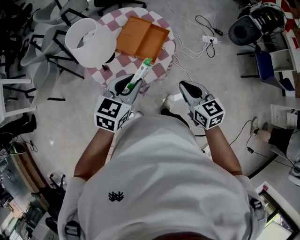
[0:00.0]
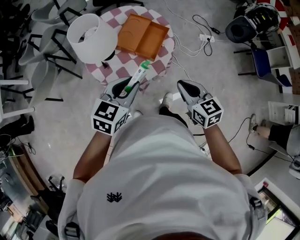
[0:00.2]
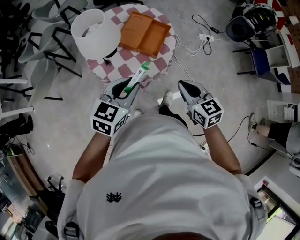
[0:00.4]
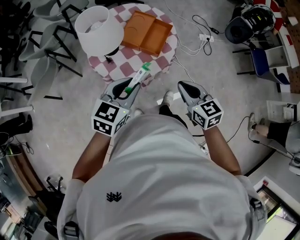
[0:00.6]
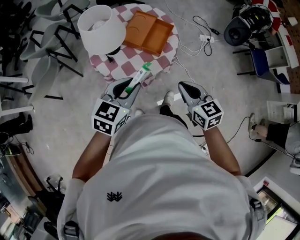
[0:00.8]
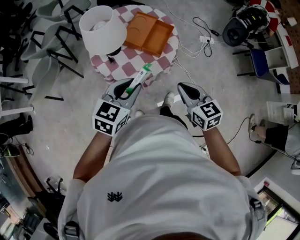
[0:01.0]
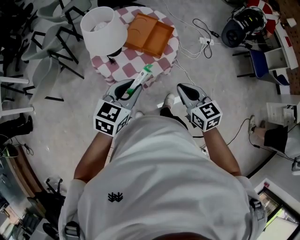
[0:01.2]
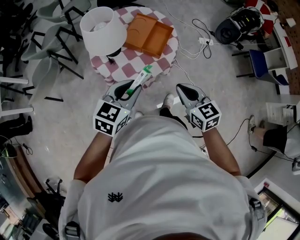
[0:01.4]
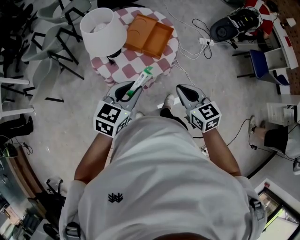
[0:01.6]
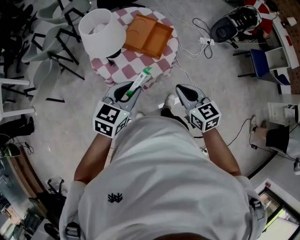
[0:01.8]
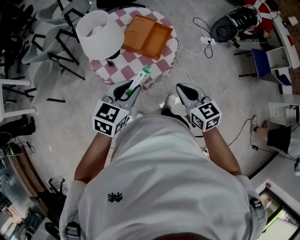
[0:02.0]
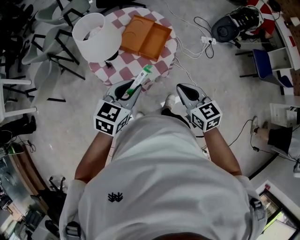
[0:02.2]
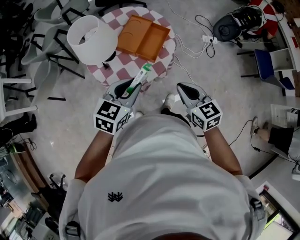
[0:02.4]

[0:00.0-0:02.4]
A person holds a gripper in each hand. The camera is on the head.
0:00.0 to 0:01.2: Both grippers travel together backward and to the left, about 10 cm.
0:01.2 to 0:02.4: The two grippers go approximately 5 cm forward.

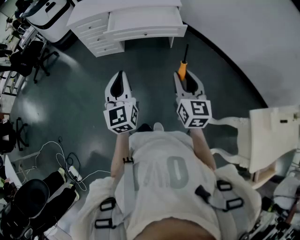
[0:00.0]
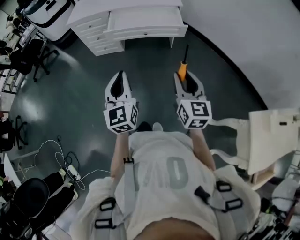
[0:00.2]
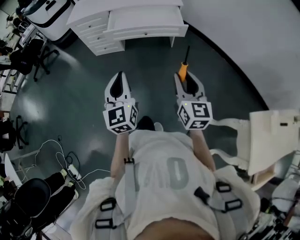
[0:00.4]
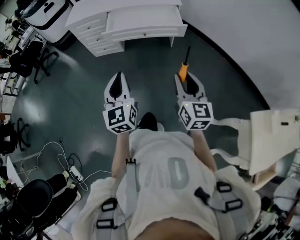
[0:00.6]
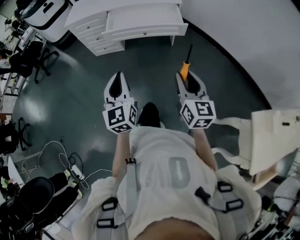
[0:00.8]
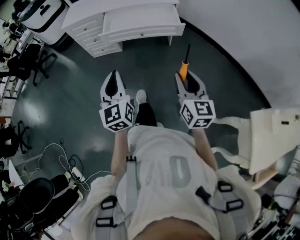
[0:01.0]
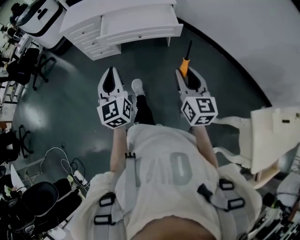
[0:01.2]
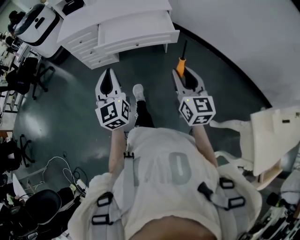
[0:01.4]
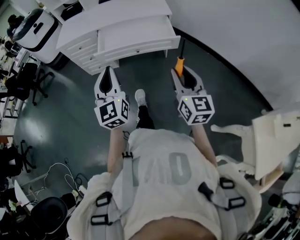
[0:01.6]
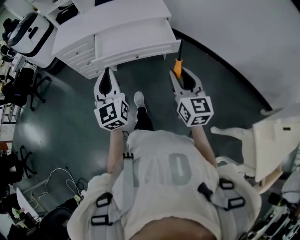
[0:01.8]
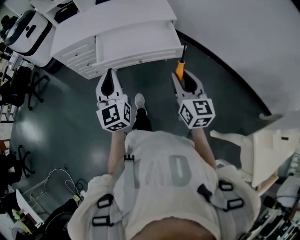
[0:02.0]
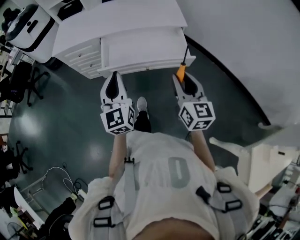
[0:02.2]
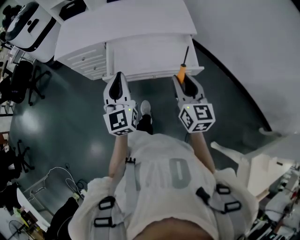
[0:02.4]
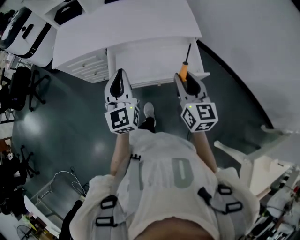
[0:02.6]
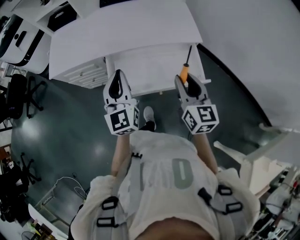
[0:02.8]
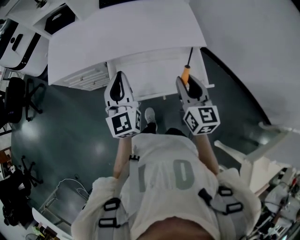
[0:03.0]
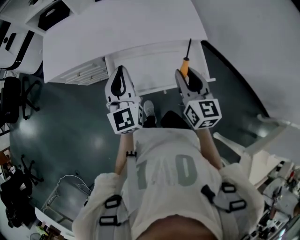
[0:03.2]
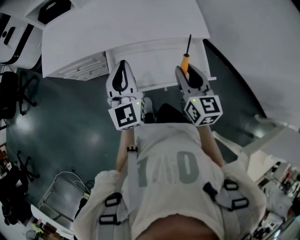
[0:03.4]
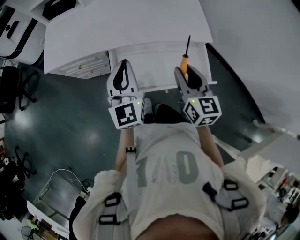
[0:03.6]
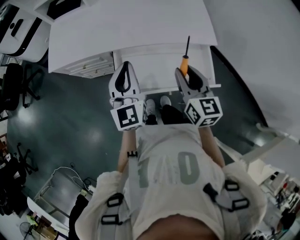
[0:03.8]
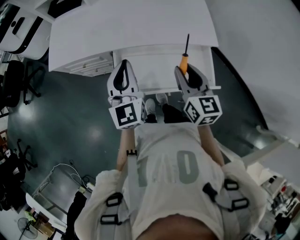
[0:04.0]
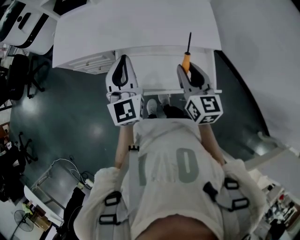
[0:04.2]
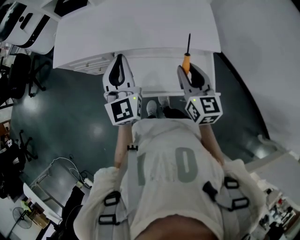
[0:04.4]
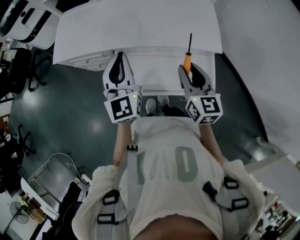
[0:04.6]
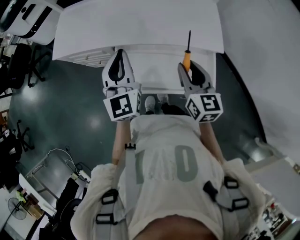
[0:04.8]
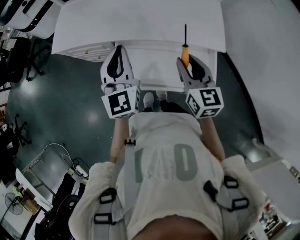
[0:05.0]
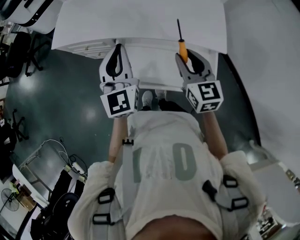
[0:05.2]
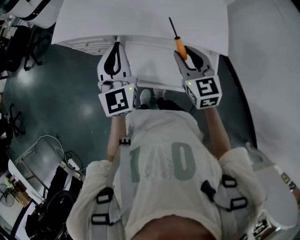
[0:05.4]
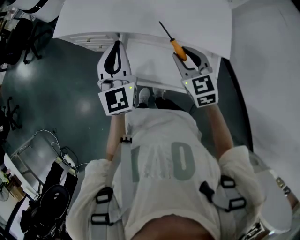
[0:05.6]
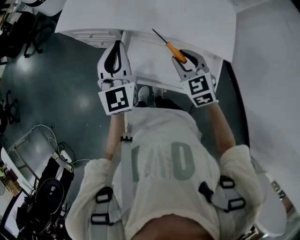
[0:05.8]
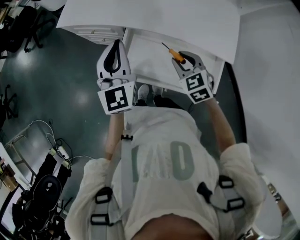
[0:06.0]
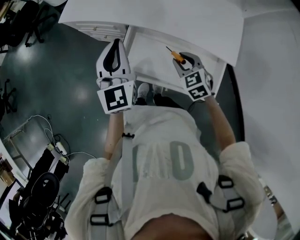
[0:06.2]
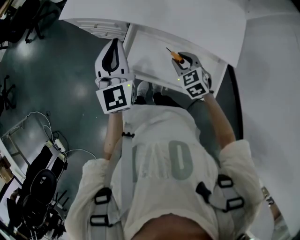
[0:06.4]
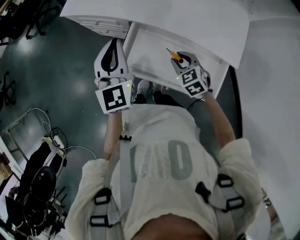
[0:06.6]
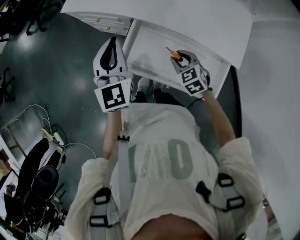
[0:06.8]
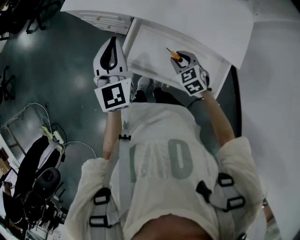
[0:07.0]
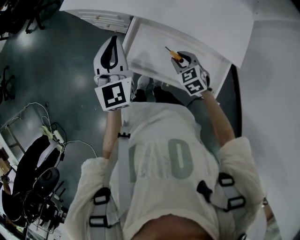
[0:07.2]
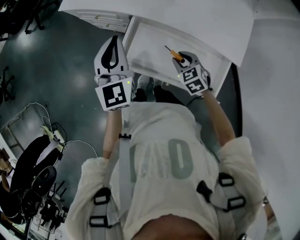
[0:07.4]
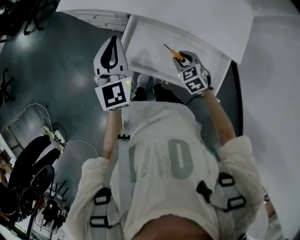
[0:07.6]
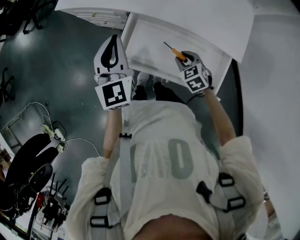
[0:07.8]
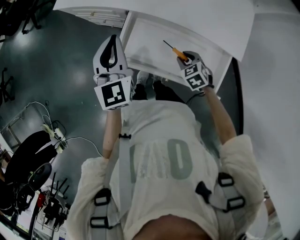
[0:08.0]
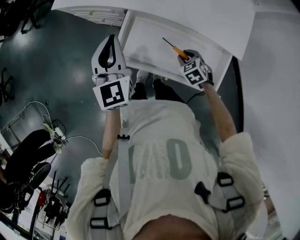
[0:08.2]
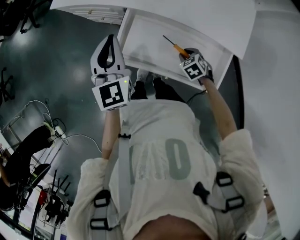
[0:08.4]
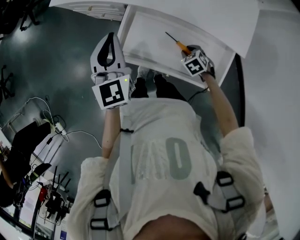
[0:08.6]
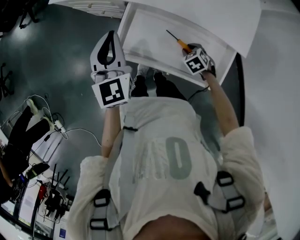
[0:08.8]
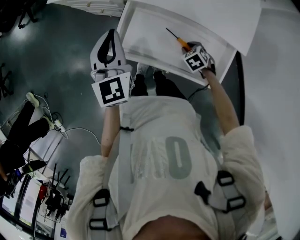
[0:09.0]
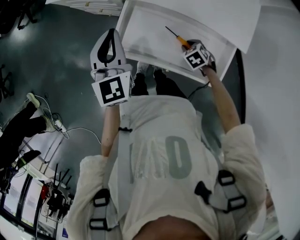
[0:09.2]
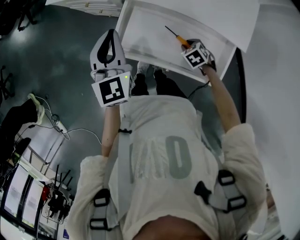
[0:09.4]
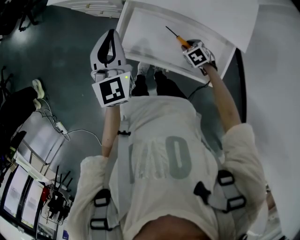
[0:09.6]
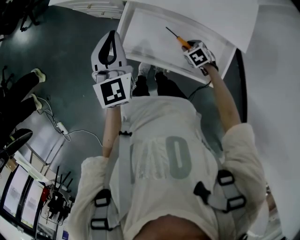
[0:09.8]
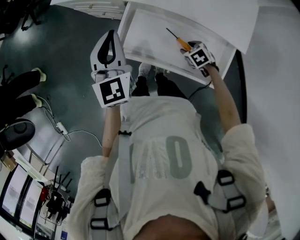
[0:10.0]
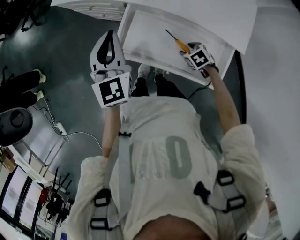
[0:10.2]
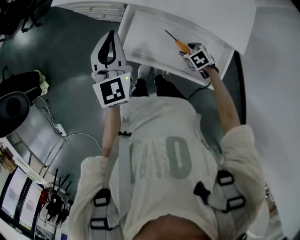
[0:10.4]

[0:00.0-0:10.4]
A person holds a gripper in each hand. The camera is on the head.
0:00.0 to 0:01.4: Both grippers travel together forward, about 10 cm.
0:01.4 to 0:03.0: The two grippers travel together, forward, roughly 50 cm.
0:03.0 to 0:04.4: The two grippers go about 5 cm forward.
0:04.4 to 0:06.0: The right gripper is displaced downward, to the left and forward by approximately 15 cm, and rotates about 50 degrees; the left gripper goes some 5 cm to the left.
0:06.0 to 0:07.4: The right gripper moves downward, approximately 10 cm.
0:07.4 to 0:09.0: The right gripper is displaced downward by approximately 10 cm, and rotates about 20 degrees.
0:09.0 to 0:10.4: The right gripper opens.

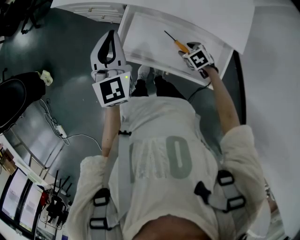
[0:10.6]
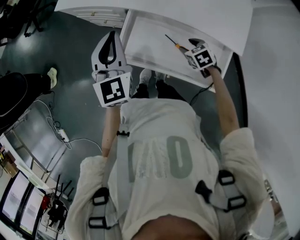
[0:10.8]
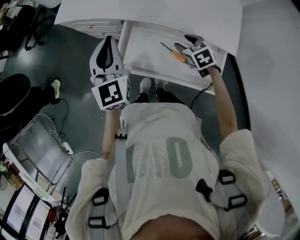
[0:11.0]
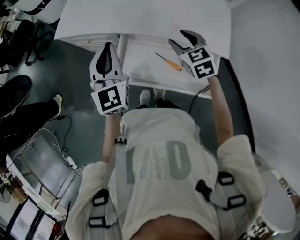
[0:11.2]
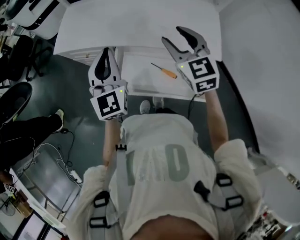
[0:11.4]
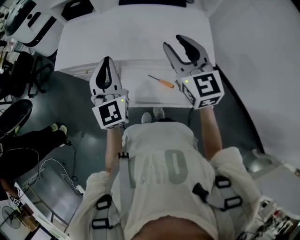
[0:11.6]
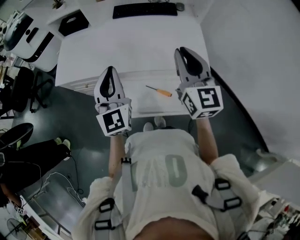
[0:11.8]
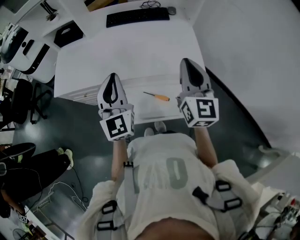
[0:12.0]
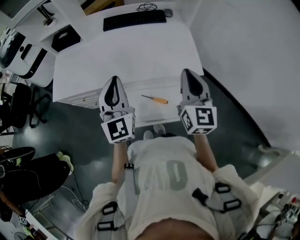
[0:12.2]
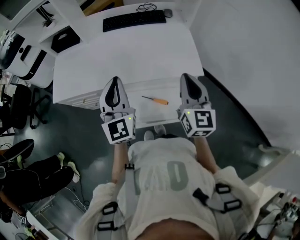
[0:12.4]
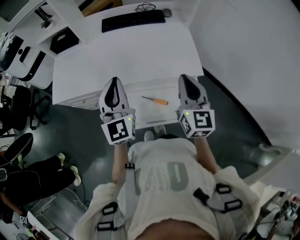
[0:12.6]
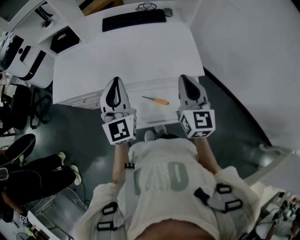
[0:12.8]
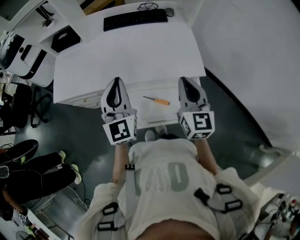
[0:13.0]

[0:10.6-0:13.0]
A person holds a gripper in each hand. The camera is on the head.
0:10.6 to 0:11.8: The right gripper is displaced upward by some 40 cm, angles its fingers upward, by roughly 70 degrees, and closes. Meanwhile the left gripper goes roughly 10 cm upward, and changes its angle by approximately 20 degrees.
0:11.8 to 0:13.0: The right gripper heads downward, covering roughly 5 cm.

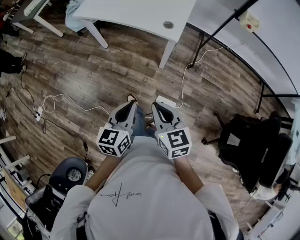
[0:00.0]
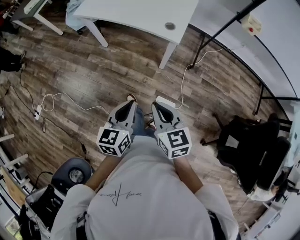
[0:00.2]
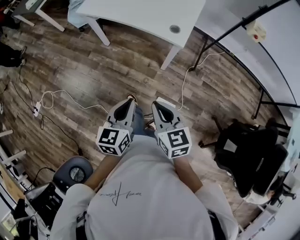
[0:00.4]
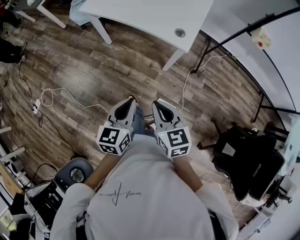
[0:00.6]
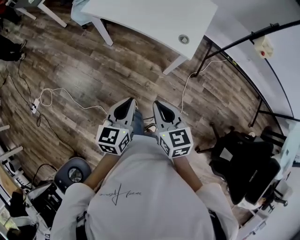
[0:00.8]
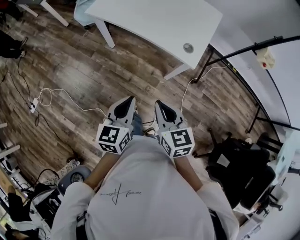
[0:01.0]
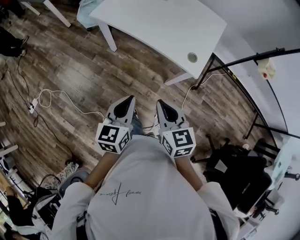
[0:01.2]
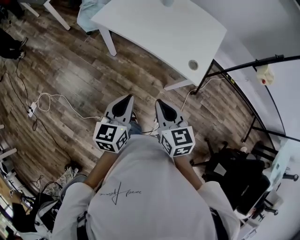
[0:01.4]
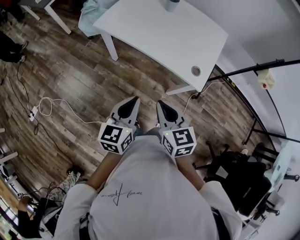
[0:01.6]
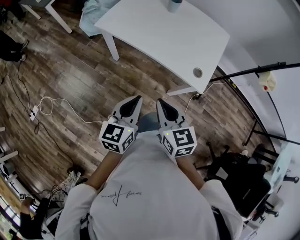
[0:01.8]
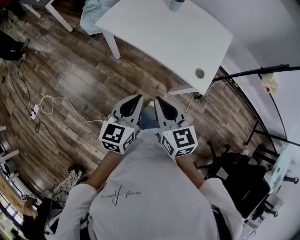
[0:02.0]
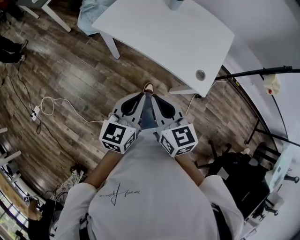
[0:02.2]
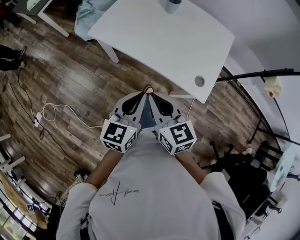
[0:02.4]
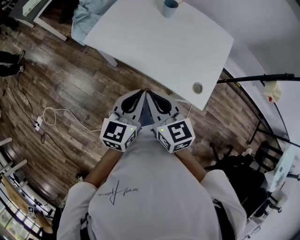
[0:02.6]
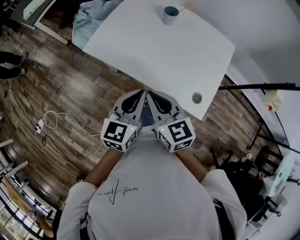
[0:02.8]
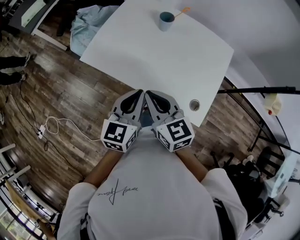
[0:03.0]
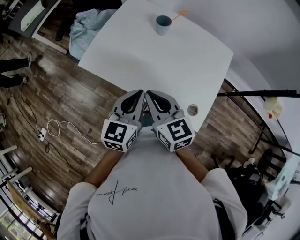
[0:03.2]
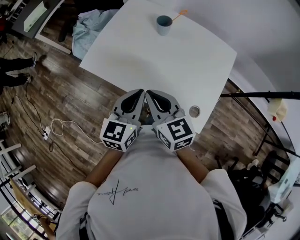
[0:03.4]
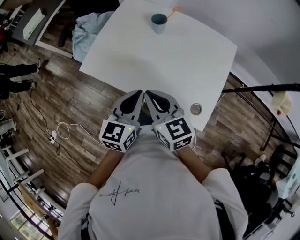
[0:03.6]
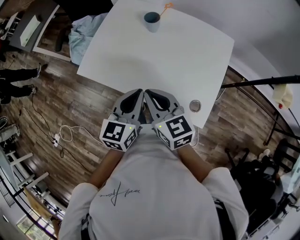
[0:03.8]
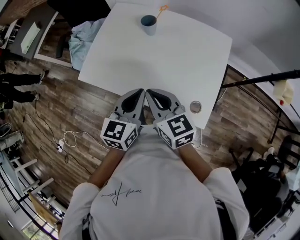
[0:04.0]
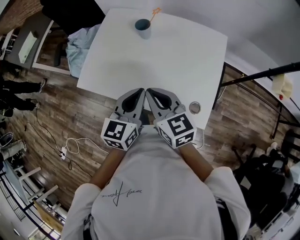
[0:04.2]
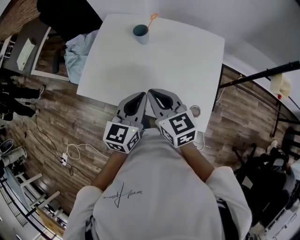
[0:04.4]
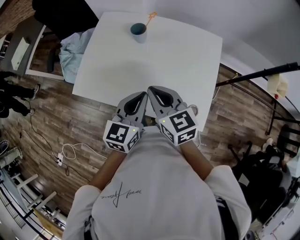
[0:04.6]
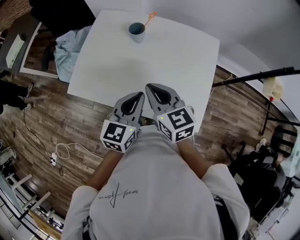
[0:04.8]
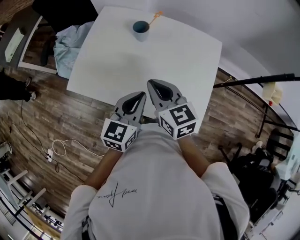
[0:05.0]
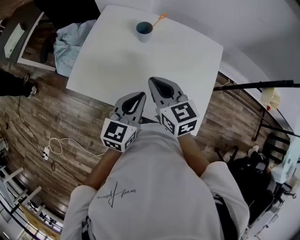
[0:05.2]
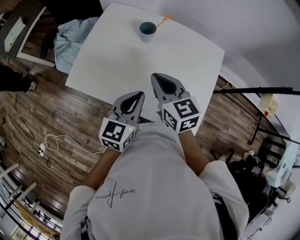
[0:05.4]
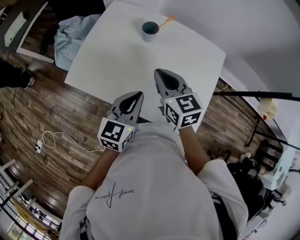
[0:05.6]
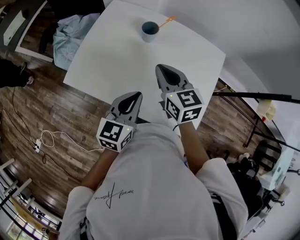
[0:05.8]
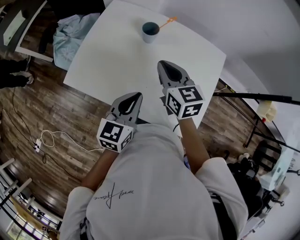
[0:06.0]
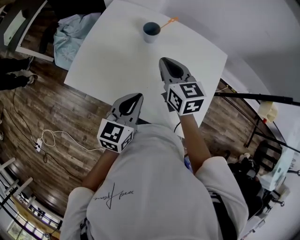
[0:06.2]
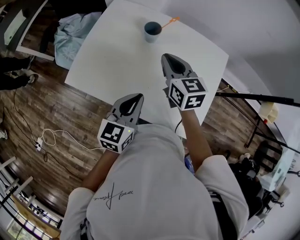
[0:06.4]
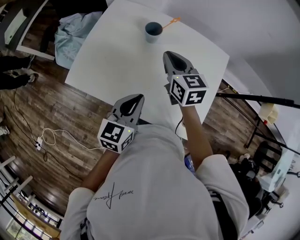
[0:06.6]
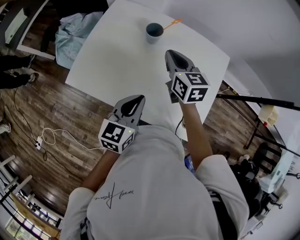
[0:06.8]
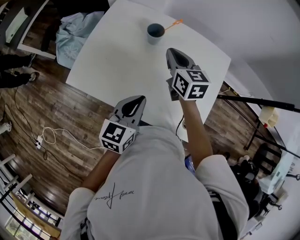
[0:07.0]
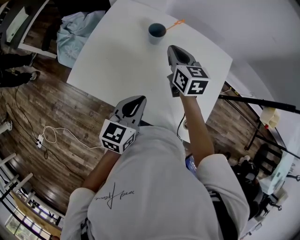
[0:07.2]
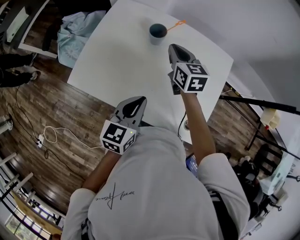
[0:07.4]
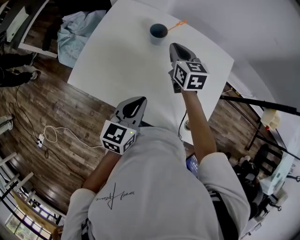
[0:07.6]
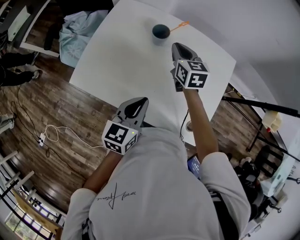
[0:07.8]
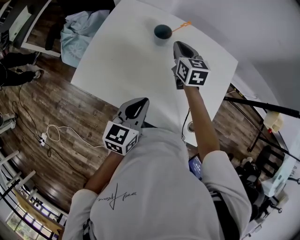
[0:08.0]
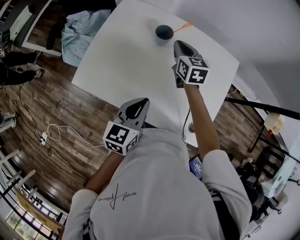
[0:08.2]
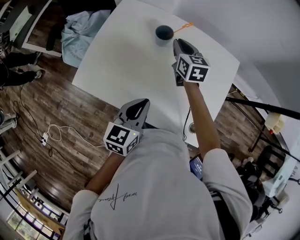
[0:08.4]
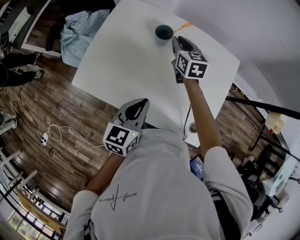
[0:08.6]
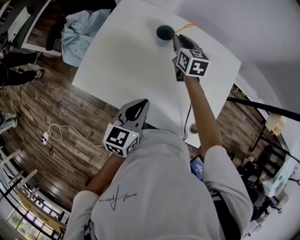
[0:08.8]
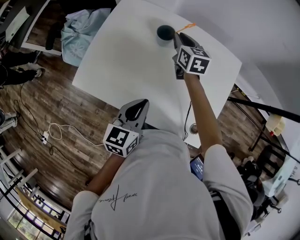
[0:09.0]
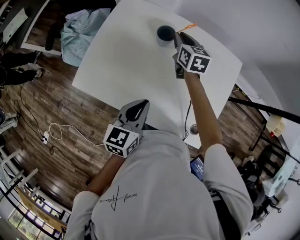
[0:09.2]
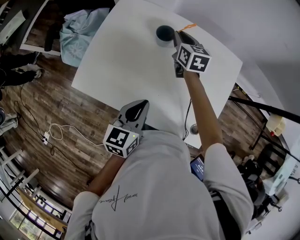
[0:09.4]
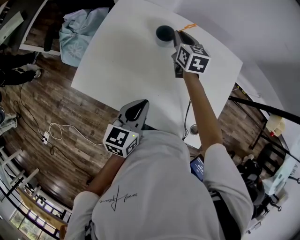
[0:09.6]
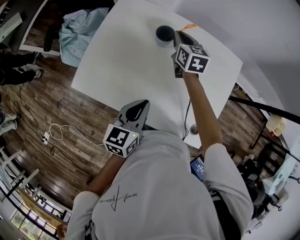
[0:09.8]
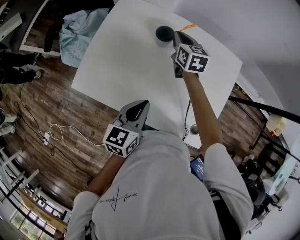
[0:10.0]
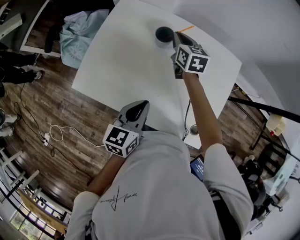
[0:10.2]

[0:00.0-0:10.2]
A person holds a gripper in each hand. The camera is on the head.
0:00.0 to 0:01.4: The two grippers go roughly 25 cm forward and to the left.
0:01.4 to 0:03.0: Both grippers move forward, some 30 cm.
0:03.0 to 0:04.4: Both grippers travel together to the right and forward, roughly 10 cm.
0:04.4 to 0:05.8: The left gripper changes place by roughly 5 cm. The right gripper travels forward by roughly 10 cm.
0:05.8 to 0:07.2: The right gripper moves forward, roughly 10 cm.
0:07.2 to 0:08.8: The right gripper travels forward and downward by about 10 cm.
0:08.8 to 0:10.2: The grippers stay close to where they were, moving slightly.
